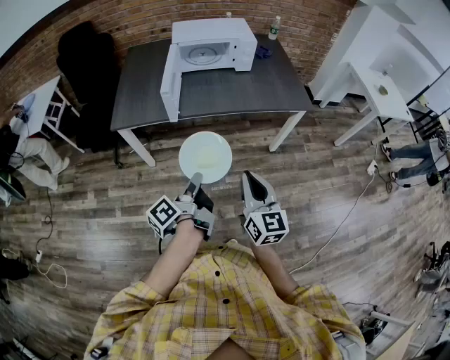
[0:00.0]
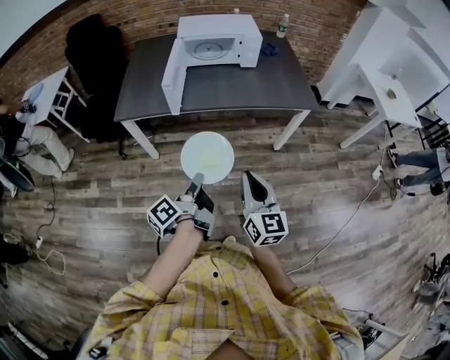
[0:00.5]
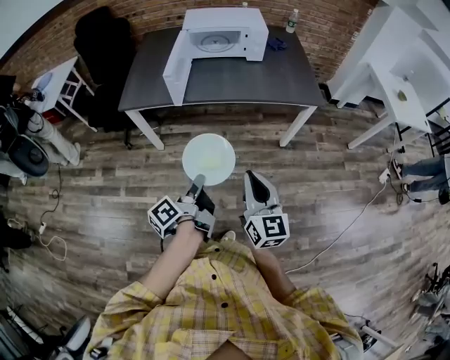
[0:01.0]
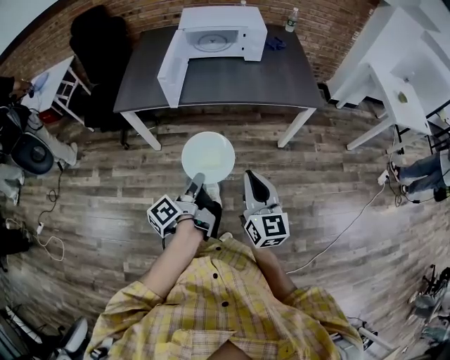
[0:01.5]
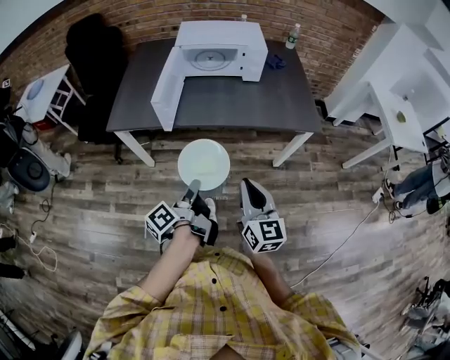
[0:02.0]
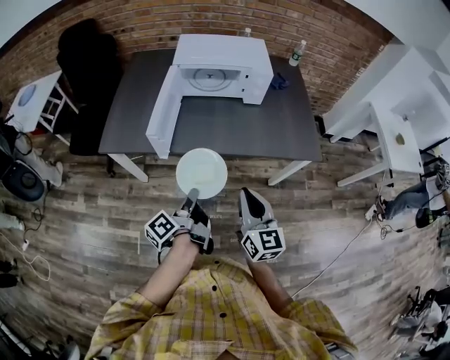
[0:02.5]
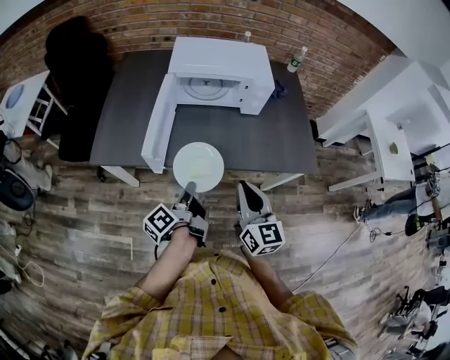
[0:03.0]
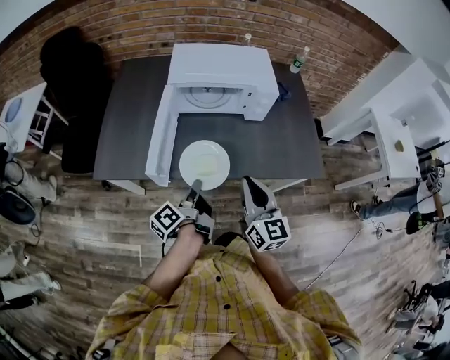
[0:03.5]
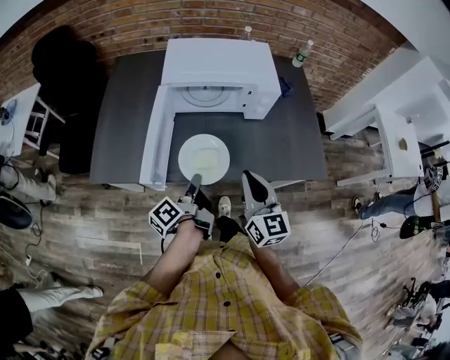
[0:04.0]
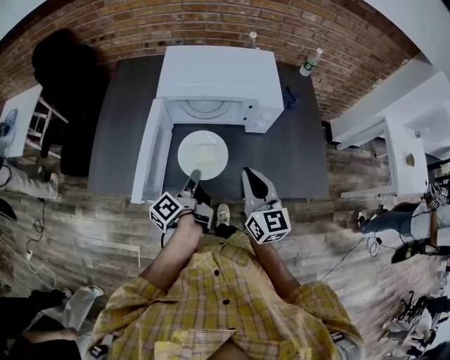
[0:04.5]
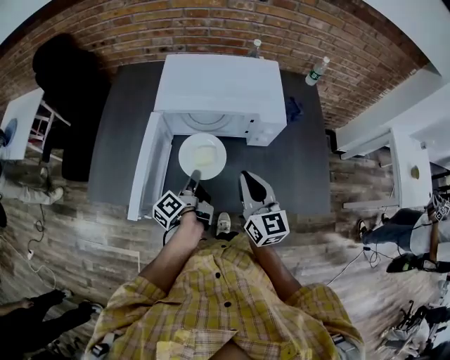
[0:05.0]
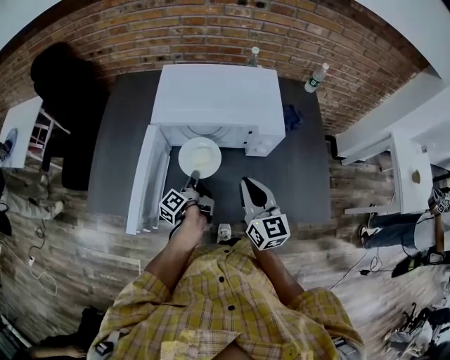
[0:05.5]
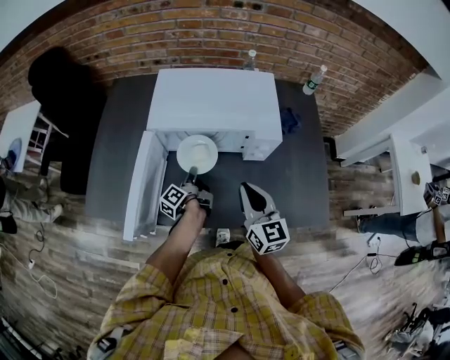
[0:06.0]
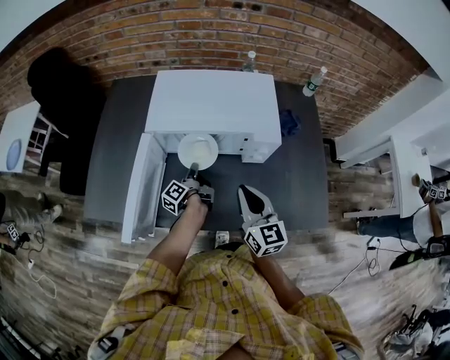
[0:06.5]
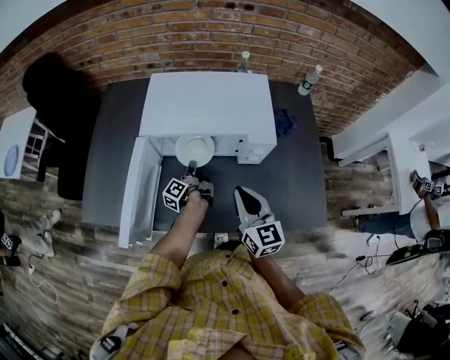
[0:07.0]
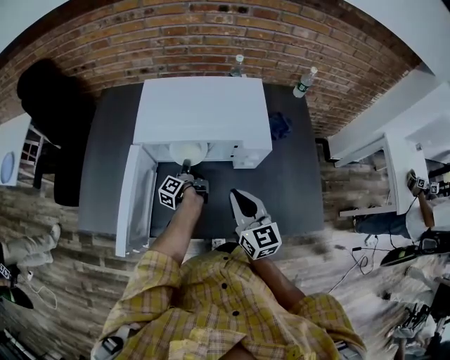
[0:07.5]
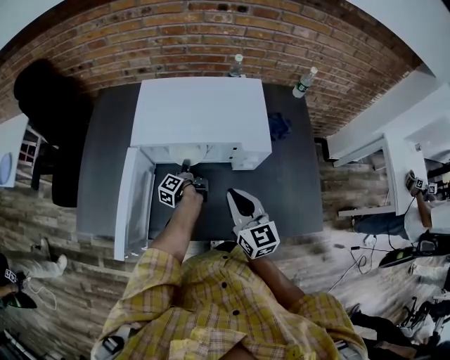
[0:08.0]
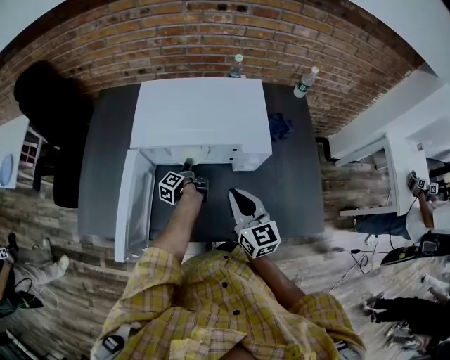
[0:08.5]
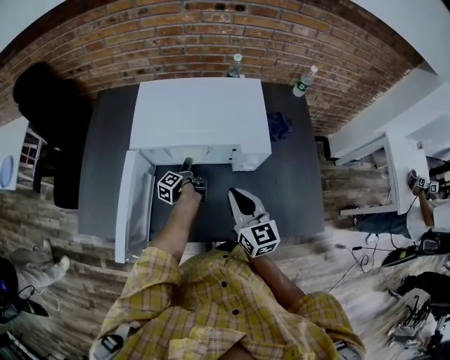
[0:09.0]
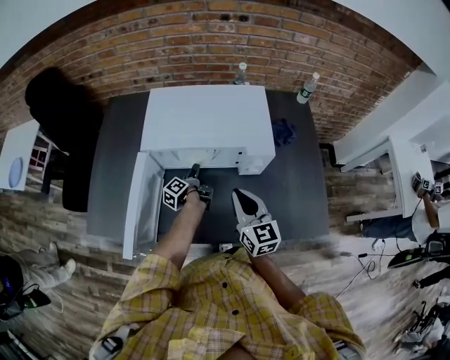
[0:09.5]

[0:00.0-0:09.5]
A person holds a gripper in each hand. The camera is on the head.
0:00.0 to 0:02.0: The right gripper changes place by roughly 10 cm.
0:02.0 to 0:04.0: The right gripper moves approximately 35 cm.
0:04.0 to 0:05.5: The right gripper ends up approximately 15 cm from where it was.

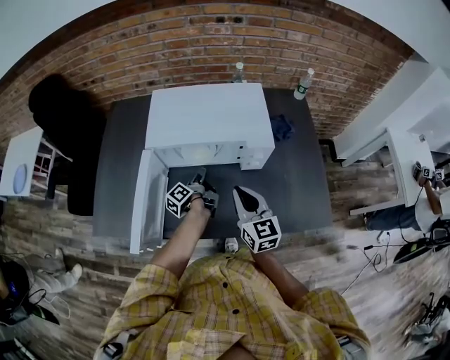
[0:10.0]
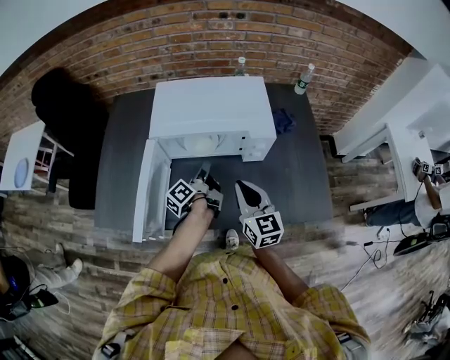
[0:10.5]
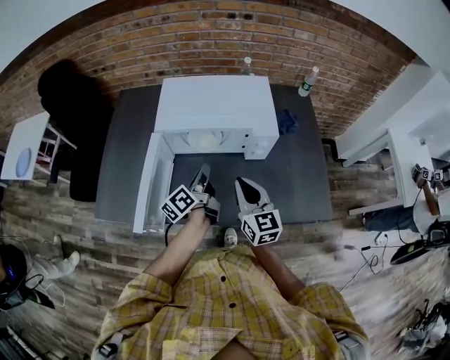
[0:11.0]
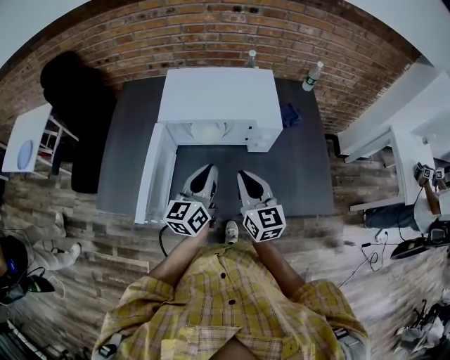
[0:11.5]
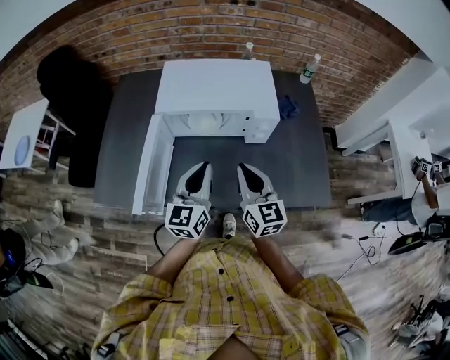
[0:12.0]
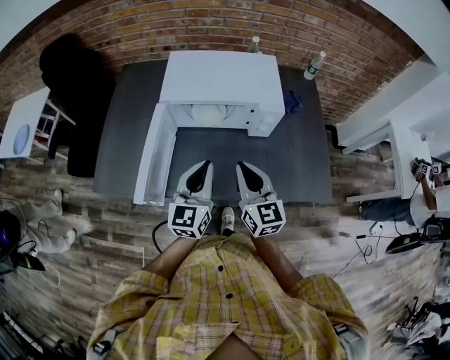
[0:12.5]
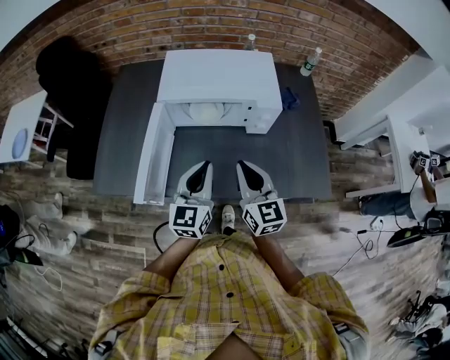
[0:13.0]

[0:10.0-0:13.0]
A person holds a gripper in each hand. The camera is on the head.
0:10.0 to 0:11.5: The right gripper changes place by roughly 5 cm.

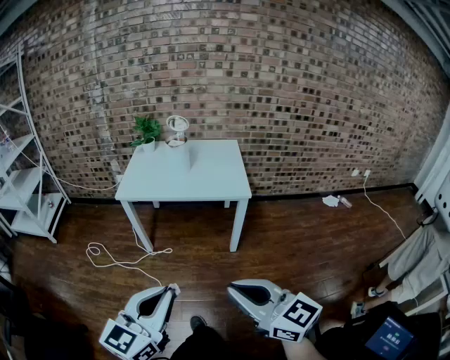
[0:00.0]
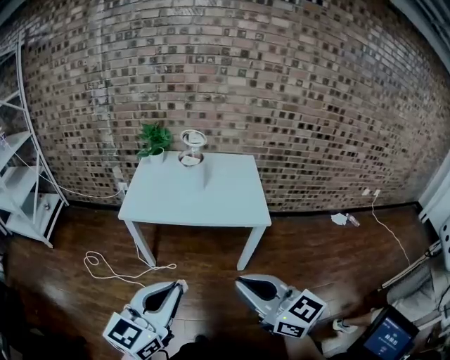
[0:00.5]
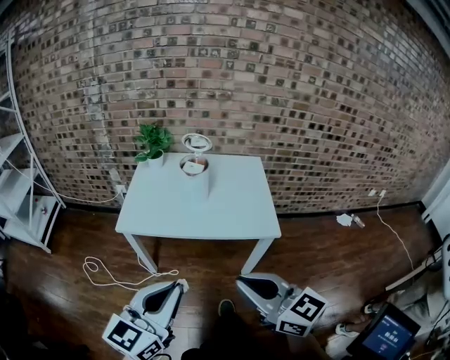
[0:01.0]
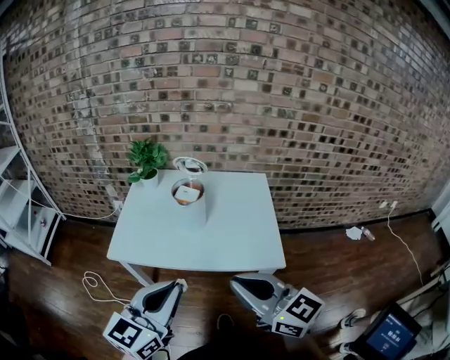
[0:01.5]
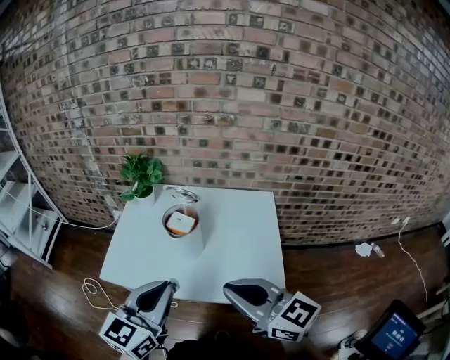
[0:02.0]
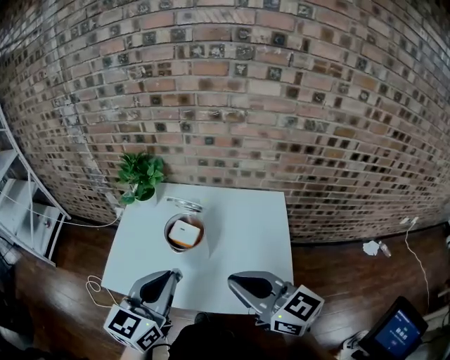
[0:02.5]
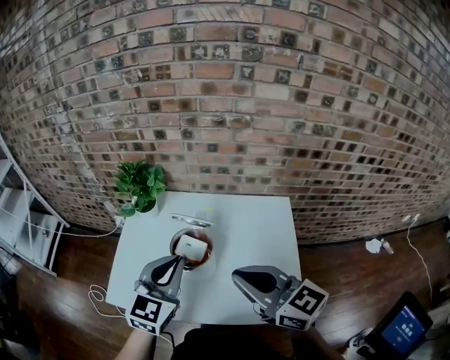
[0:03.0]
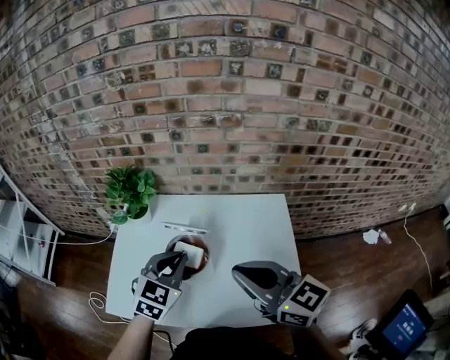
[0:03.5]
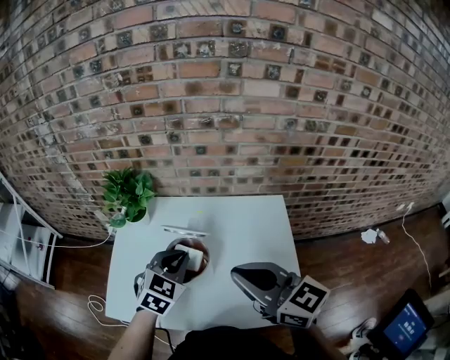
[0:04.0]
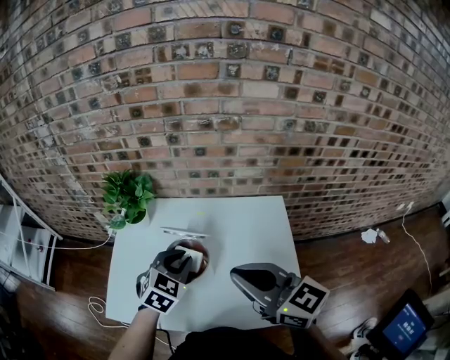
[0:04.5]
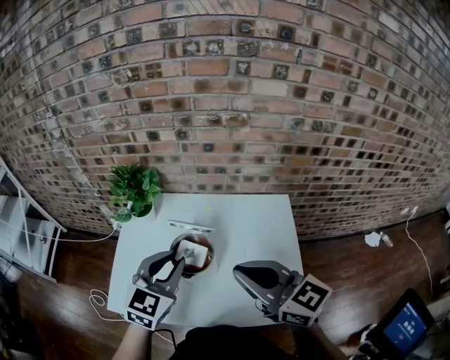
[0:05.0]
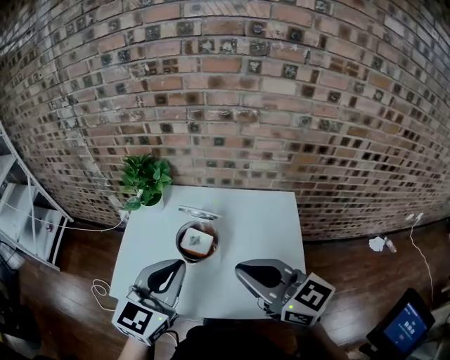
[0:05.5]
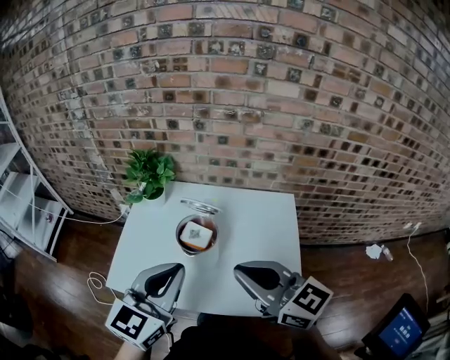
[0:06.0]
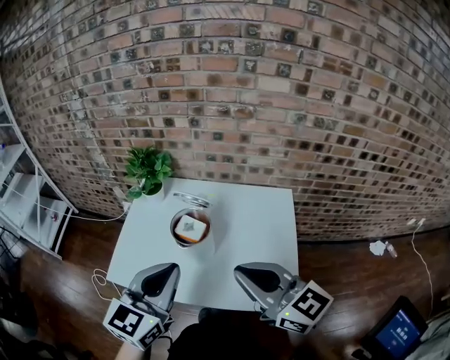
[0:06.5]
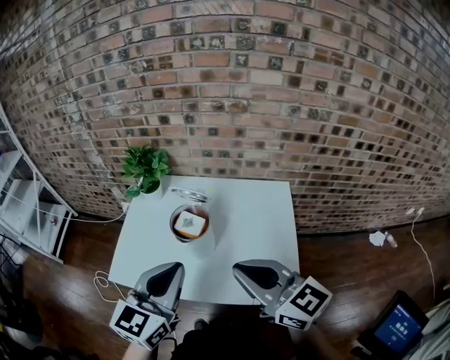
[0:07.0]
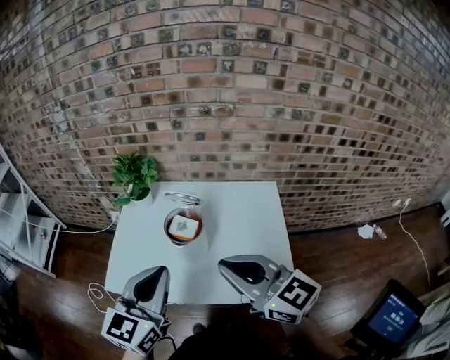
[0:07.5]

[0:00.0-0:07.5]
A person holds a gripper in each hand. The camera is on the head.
0:00.0 to 0:02.0: The two grippers travel together, forward, roughly 60 cm.
0:02.0 to 0:04.0: The left gripper shifts approximately 30 cm forward and downward, and rotates roughly 40 degrees, while the right gripper moves forward, some 20 cm.
0:04.0 to 0:05.5: The left gripper goes approximately 15 cm upward and backward, and rotates about 30 degrees.
0:05.5 to 0:07.5: Both grippers move backward, approximately 5 cm.

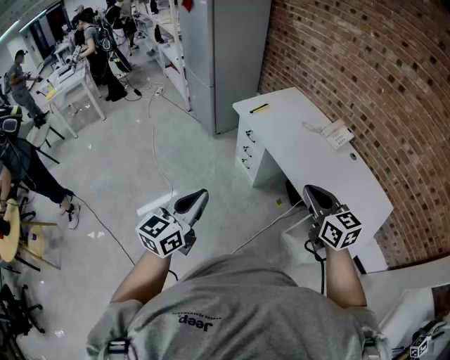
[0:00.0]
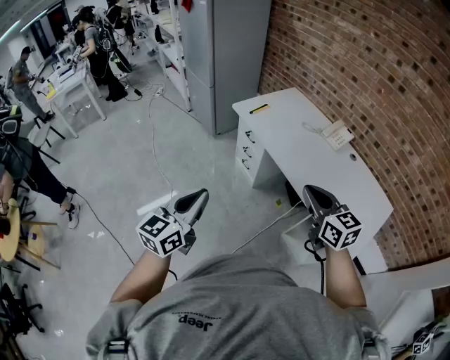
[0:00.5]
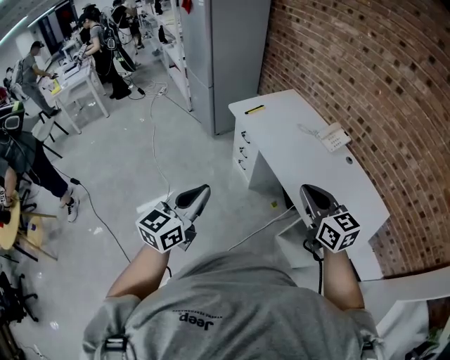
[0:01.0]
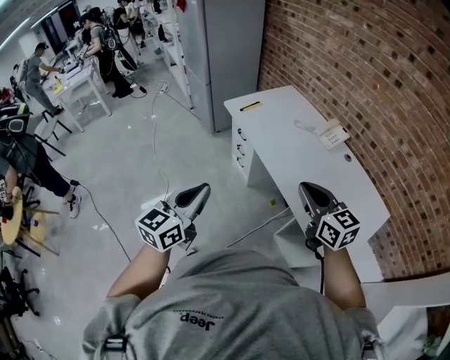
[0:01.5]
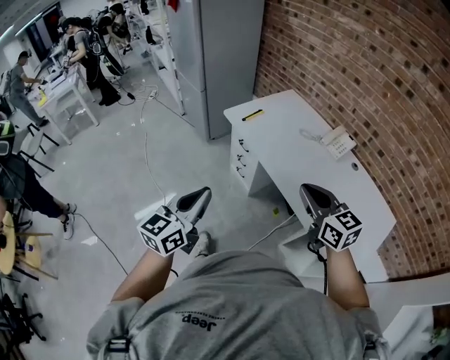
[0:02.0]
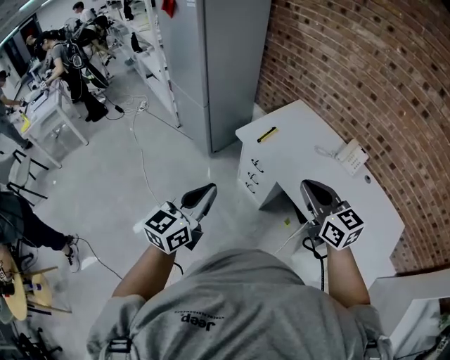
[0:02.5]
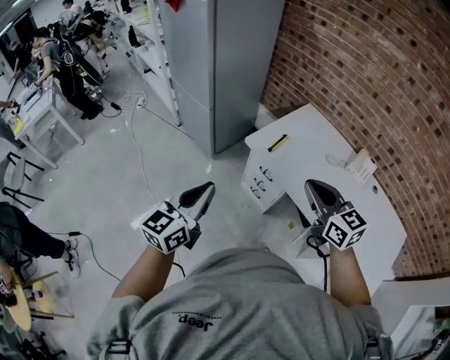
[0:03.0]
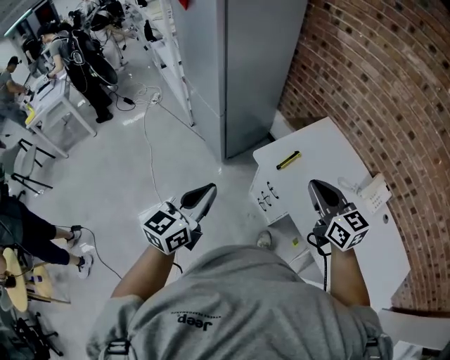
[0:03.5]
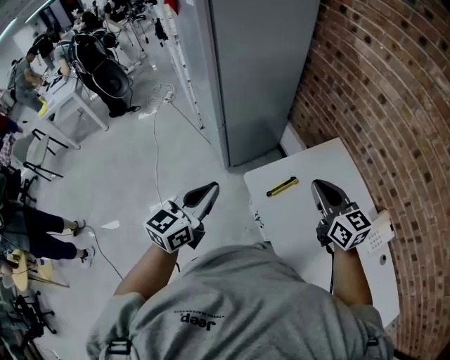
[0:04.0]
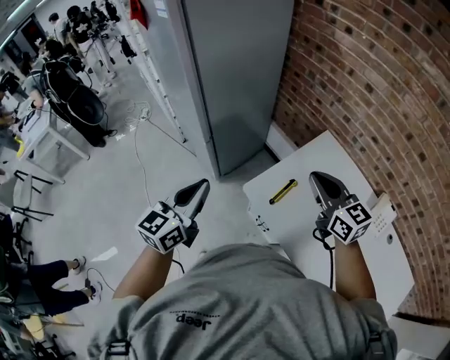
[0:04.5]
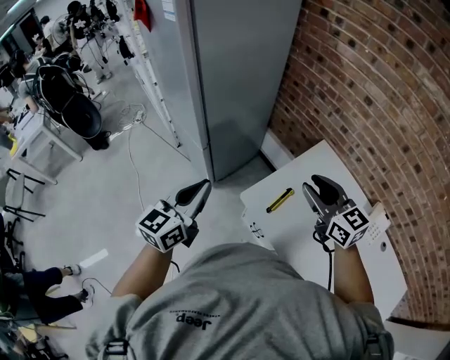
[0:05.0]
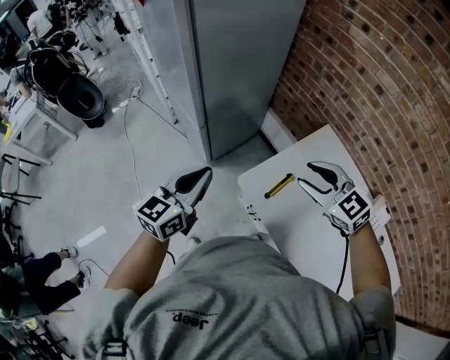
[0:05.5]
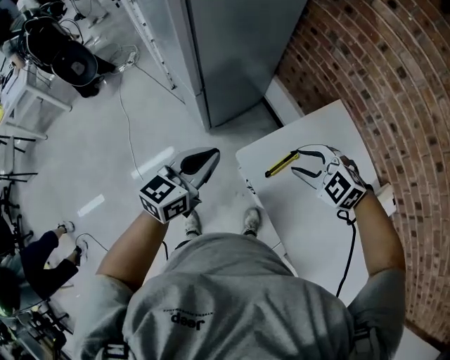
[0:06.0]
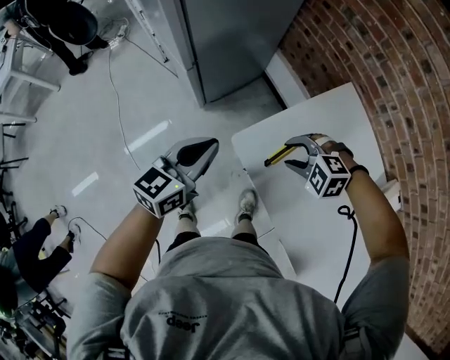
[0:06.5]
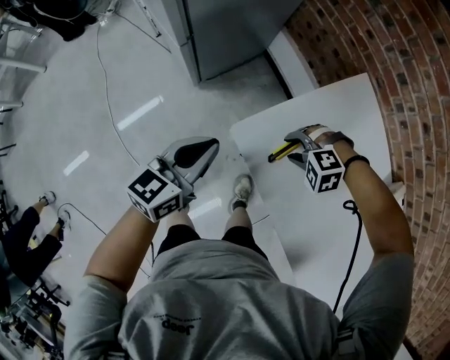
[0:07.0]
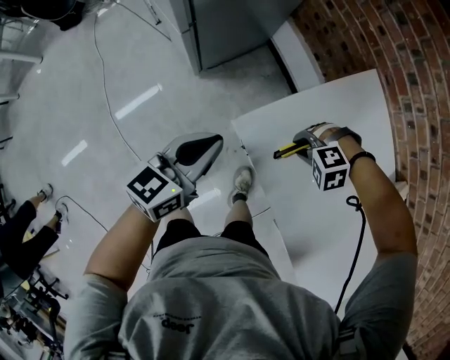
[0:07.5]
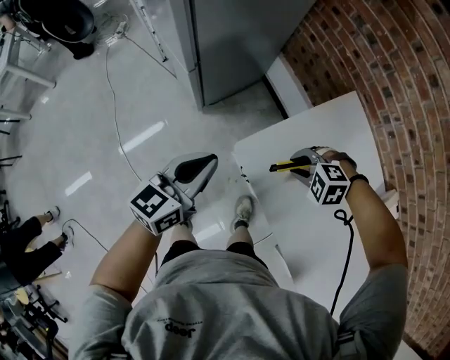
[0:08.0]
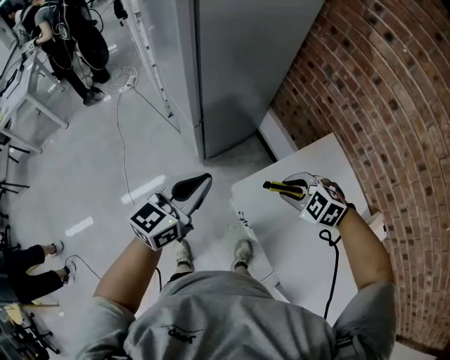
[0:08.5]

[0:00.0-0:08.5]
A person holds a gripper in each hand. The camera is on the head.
0:00.0 to 0:02.0: The left gripper goes approximately 15 cm forward and to the right; the right gripper shifts about 10 cm forward.
0:02.0 to 0:04.0: The pair of grippers is taken forward, some 50 cm.
0:04.0 to 0:06.5: The left gripper goes roughly 20 cm downward and forward. The right gripper is displaced downward by about 25 cm, angles its fingers downward, by some 50 degrees, and opens up.
0:06.5 to 0:08.5: Both grippers travel together upward, some 10 cm.
